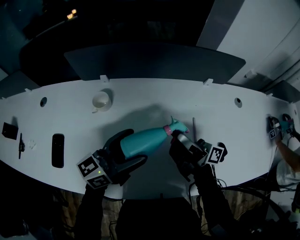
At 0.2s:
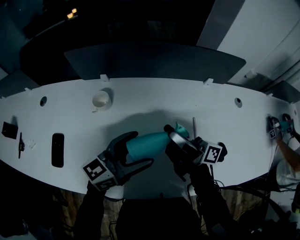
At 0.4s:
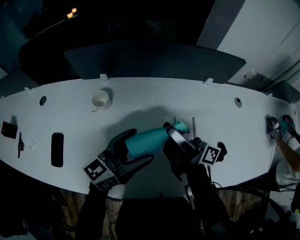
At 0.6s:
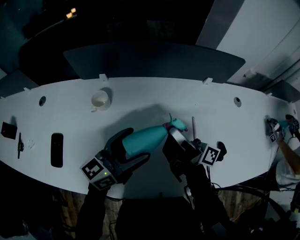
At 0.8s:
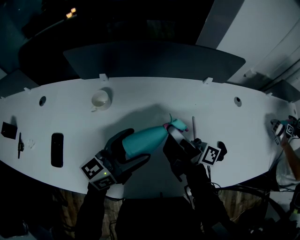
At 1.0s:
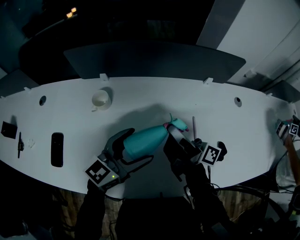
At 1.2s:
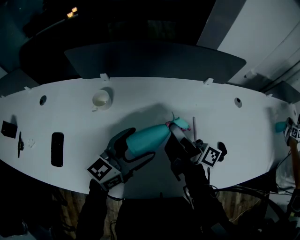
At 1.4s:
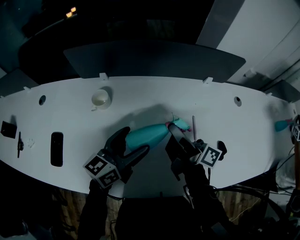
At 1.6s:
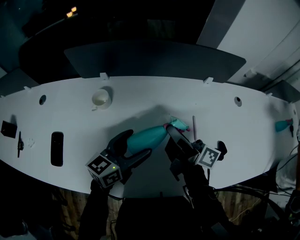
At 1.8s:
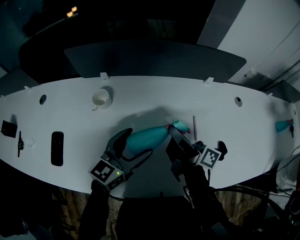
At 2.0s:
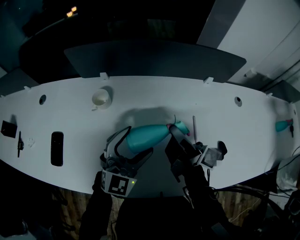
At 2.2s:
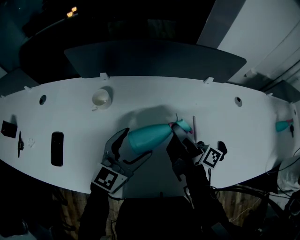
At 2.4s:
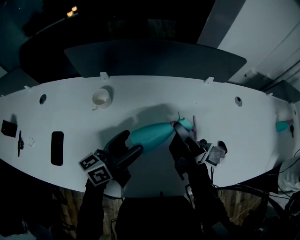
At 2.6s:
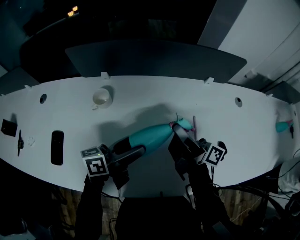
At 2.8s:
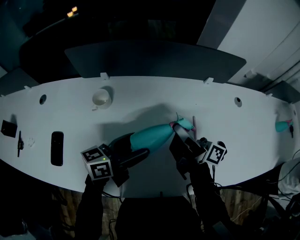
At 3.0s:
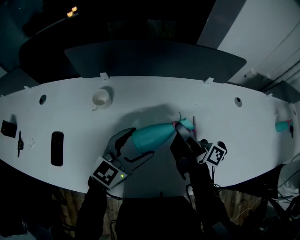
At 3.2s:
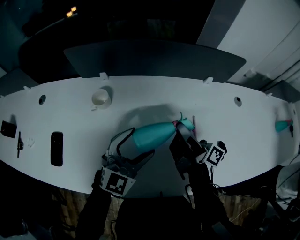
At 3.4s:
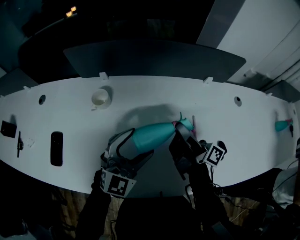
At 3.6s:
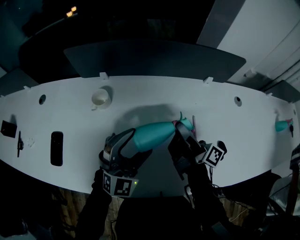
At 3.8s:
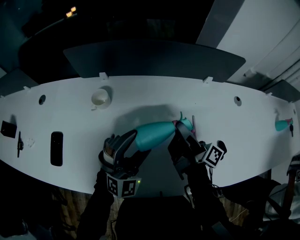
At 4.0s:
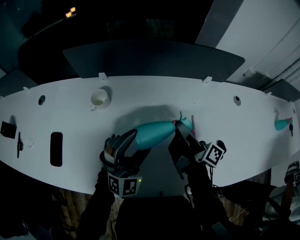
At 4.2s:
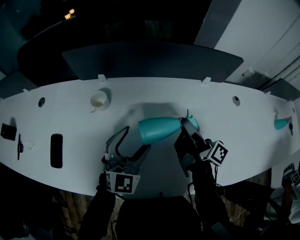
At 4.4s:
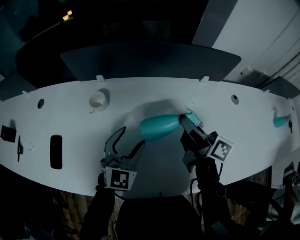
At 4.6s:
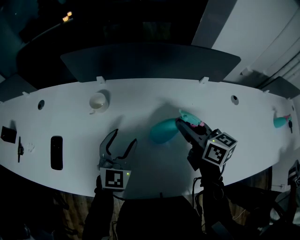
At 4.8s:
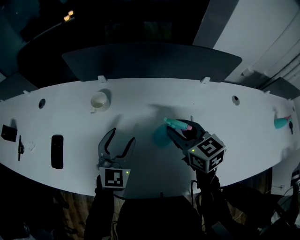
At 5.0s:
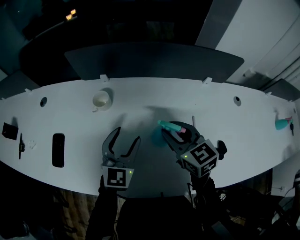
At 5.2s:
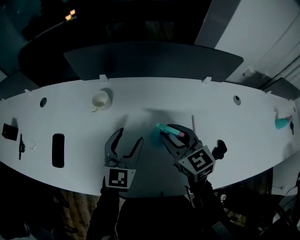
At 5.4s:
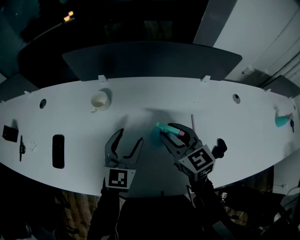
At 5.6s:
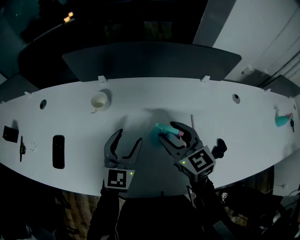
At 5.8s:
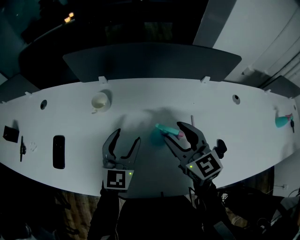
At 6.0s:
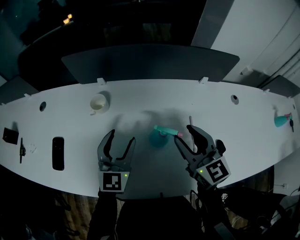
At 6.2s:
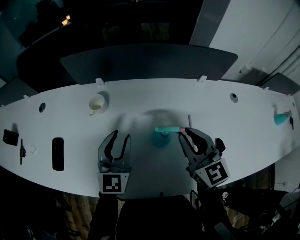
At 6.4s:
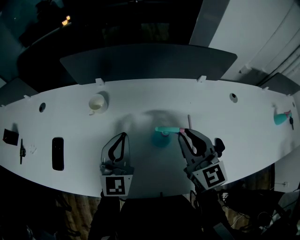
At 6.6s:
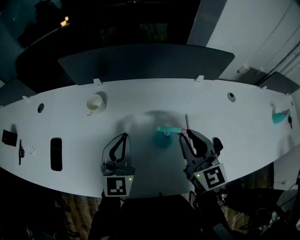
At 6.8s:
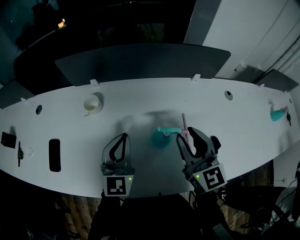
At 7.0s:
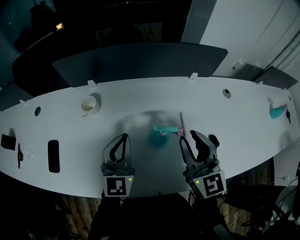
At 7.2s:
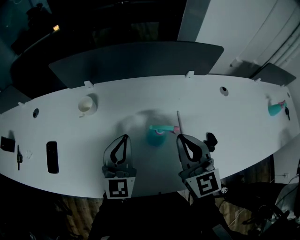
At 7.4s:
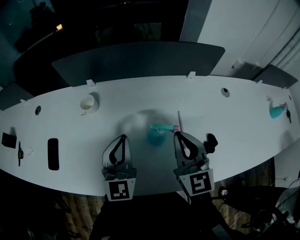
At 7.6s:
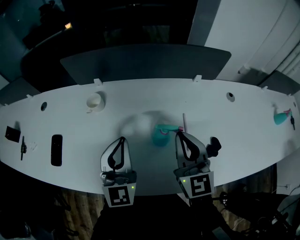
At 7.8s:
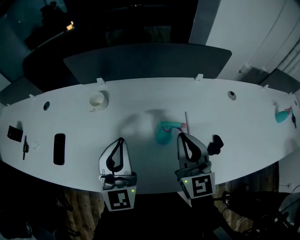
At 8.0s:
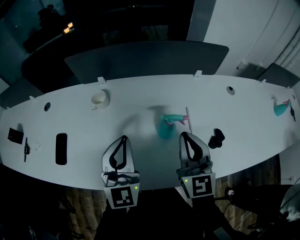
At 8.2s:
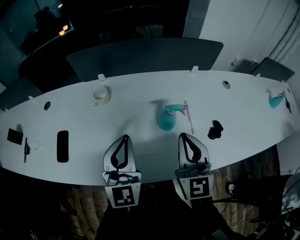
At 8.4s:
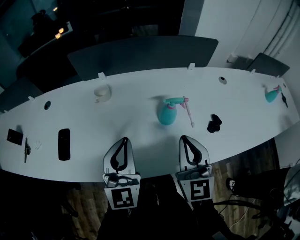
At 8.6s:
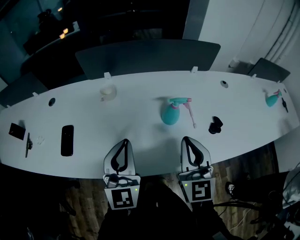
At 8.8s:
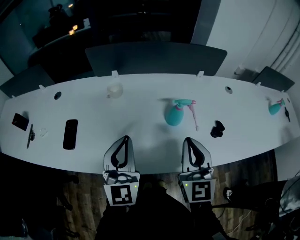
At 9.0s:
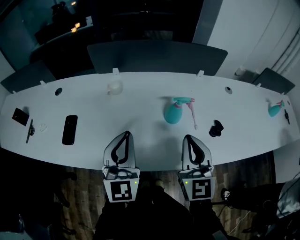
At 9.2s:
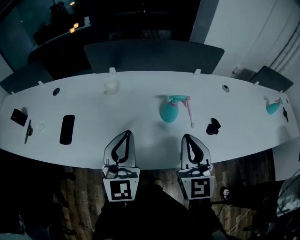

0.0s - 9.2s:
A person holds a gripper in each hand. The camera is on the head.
0.0s - 1.6s: The left gripper is displaced downward by about 5 cm. The right gripper closes its fingers.
1.6s - 3.0s: The left gripper turns by roughly 30 degrees.
3.0s - 4.6s: The right gripper rolls counterclockwise, seen from behind, by roughly 40 degrees; the left gripper changes place by some 5 cm, and swivels approximately 30 degrees.
4.6s - 6.2s: The right gripper travels backward by some 5 cm, and rotates some 30 degrees.
6.2s - 7.6s: The left gripper is displaced backward by about 5 cm, and closes up.
7.6s - 9.2s: The two grippers go some 15 cm backward.

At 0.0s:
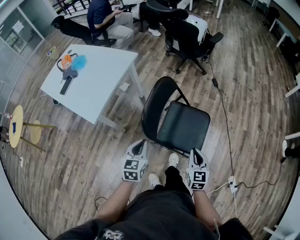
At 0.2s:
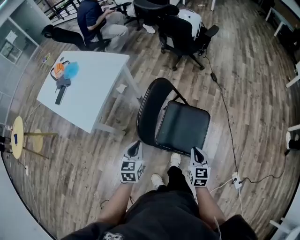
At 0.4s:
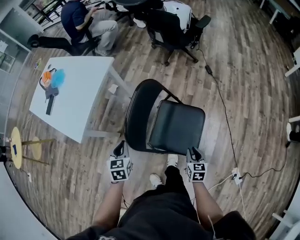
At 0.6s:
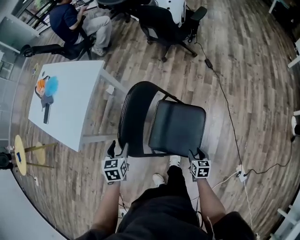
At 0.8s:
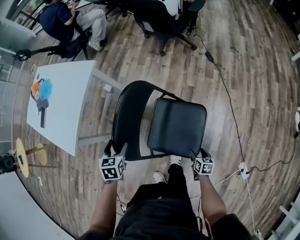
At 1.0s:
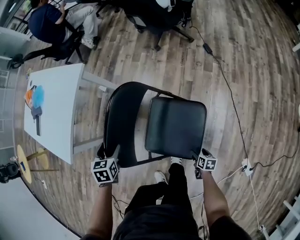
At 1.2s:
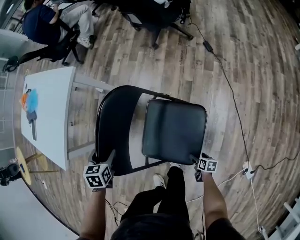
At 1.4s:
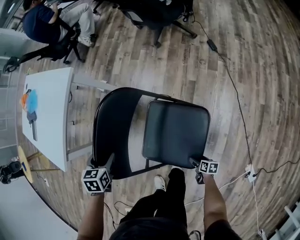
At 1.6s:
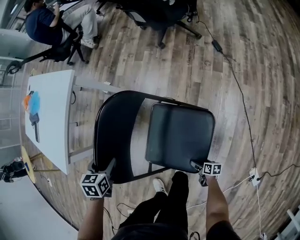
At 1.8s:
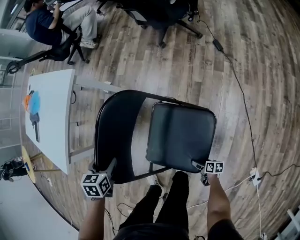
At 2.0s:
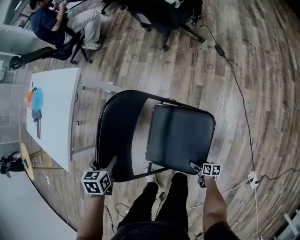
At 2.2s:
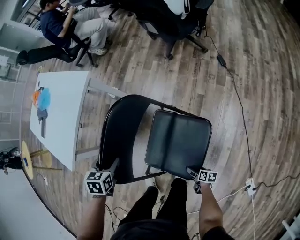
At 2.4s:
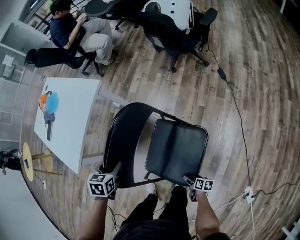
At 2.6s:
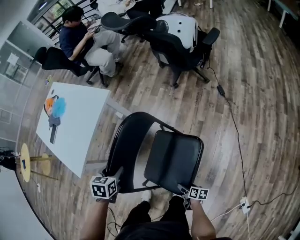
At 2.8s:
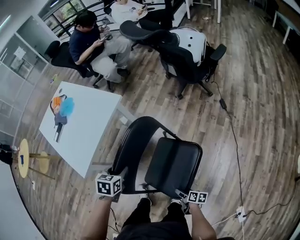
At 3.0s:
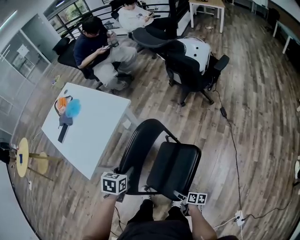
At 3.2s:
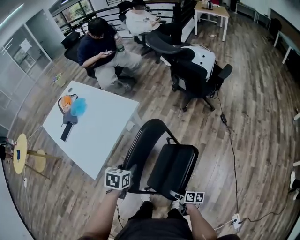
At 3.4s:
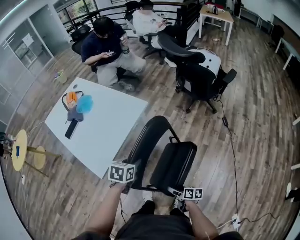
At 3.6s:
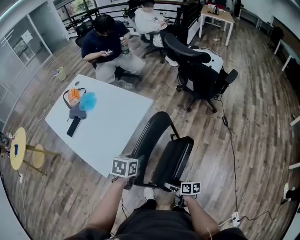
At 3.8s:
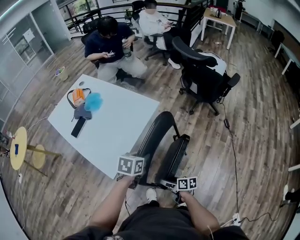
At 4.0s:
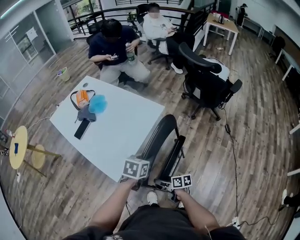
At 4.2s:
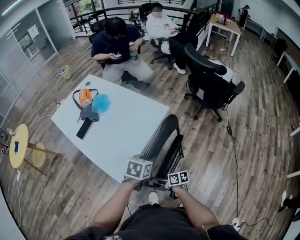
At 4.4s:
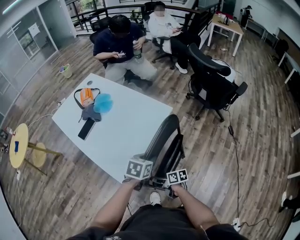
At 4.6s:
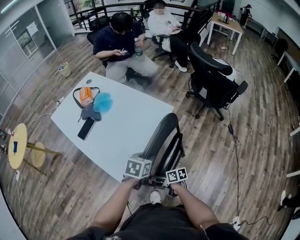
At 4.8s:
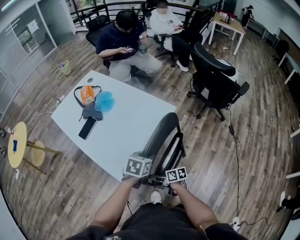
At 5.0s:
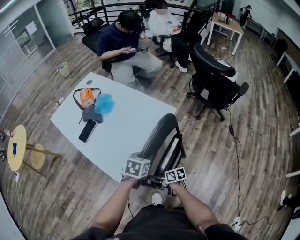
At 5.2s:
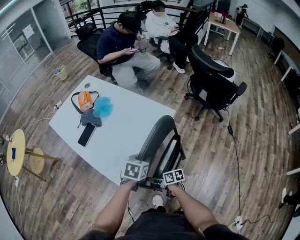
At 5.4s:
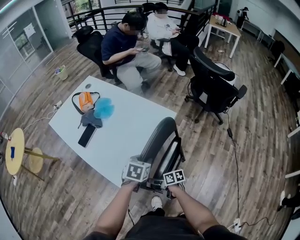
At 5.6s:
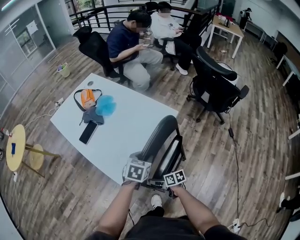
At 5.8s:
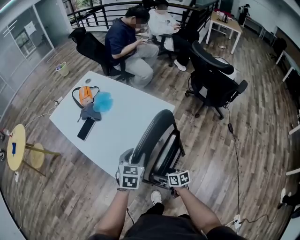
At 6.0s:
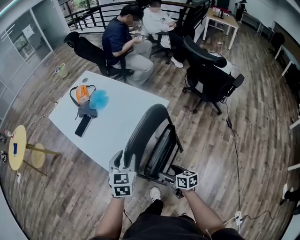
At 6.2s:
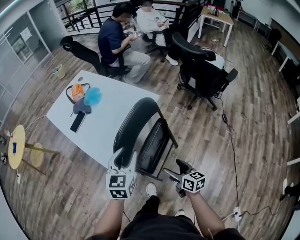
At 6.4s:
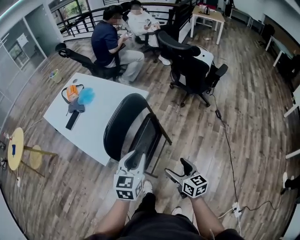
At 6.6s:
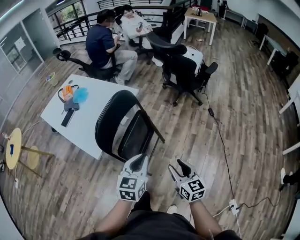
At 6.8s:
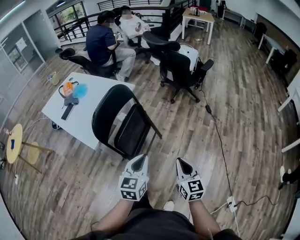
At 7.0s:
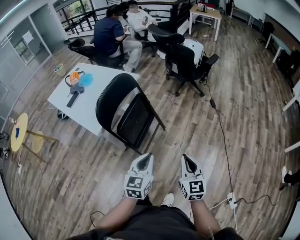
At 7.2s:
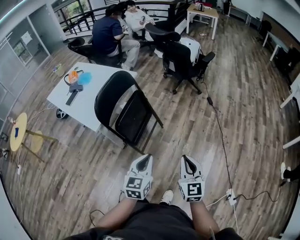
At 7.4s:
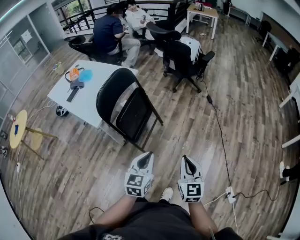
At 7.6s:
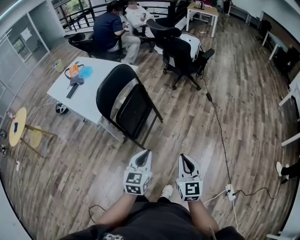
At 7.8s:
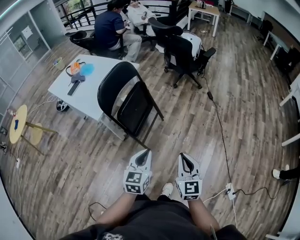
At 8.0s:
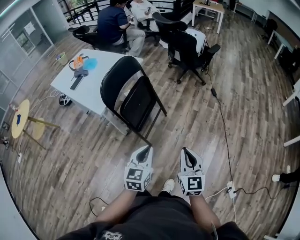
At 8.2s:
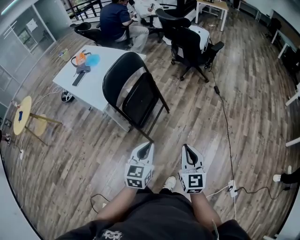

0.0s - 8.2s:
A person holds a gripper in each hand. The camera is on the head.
0.0s - 1.6s: The left gripper shifts by roughly 30 cm, angles its fingers downward, by roughly 30 degrees, and opens up, while the right gripper travels downward by roughly 50 cm, swivels about 70 degrees, and opens its fingers.
1.6s - 3.2s: The right gripper goes some 40 cm upward, to the left and forward; the left gripper shifts about 20 cm upward and to the left, and closes up.
3.2s - 5.0s: The left gripper shifts approximately 20 cm to the left and forward. Meanwhile the right gripper travels to the left and forward by roughly 40 cm, and swivels about 30 degrees.
5.0s - 6.6s: The right gripper shifts by approximately 40 cm, turns by some 60 degrees, and closes its fingers; the left gripper moves approximately 35 cm, rotates roughly 30 degrees, and opens and closes again.
6.6s - 8.2s: Both grippers travel together backward, some 20 cm. The right gripper swivels approximately 20 degrees, and closes up.

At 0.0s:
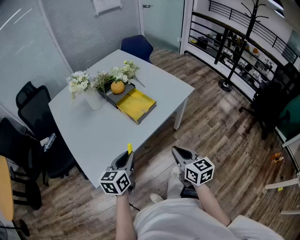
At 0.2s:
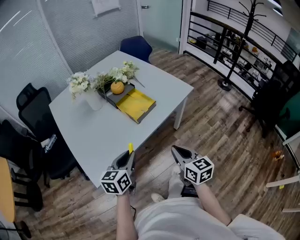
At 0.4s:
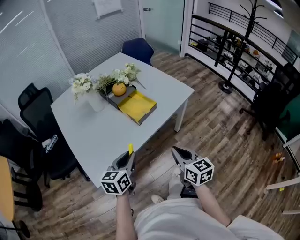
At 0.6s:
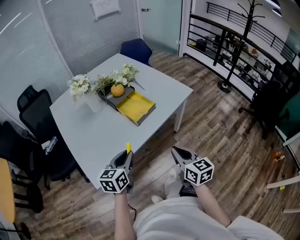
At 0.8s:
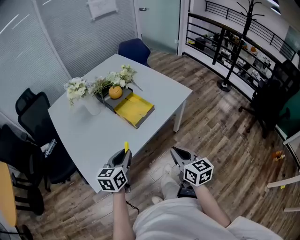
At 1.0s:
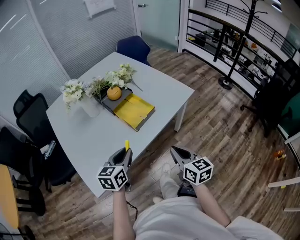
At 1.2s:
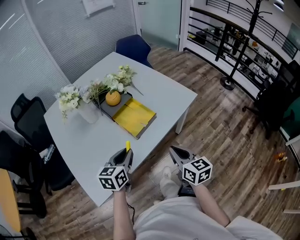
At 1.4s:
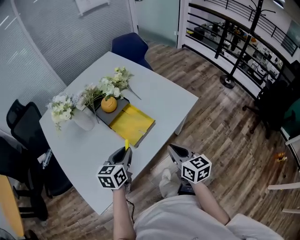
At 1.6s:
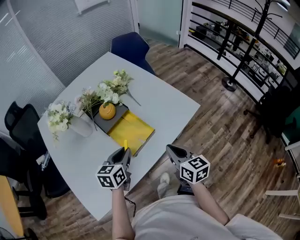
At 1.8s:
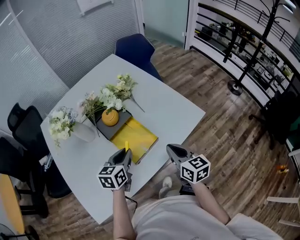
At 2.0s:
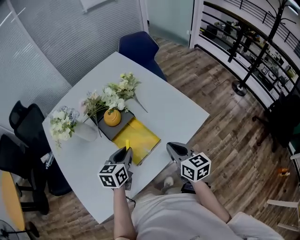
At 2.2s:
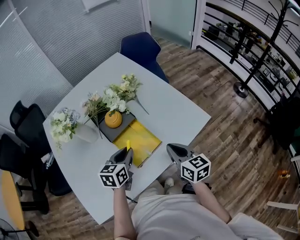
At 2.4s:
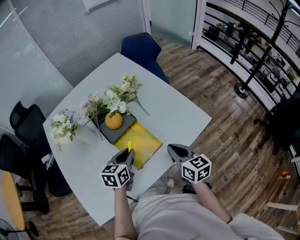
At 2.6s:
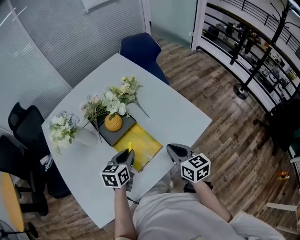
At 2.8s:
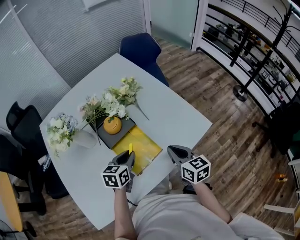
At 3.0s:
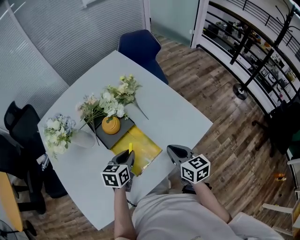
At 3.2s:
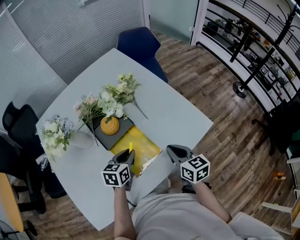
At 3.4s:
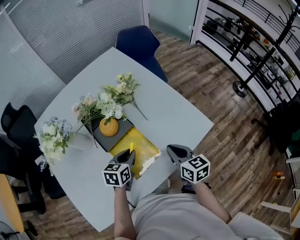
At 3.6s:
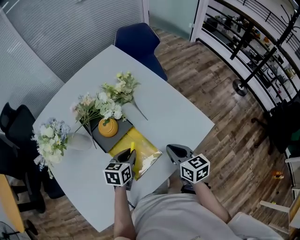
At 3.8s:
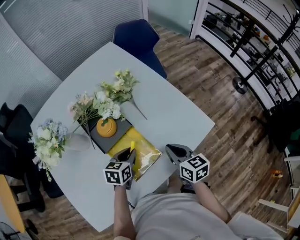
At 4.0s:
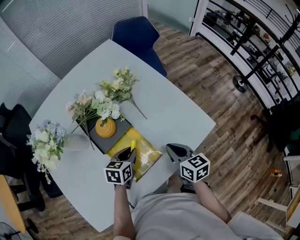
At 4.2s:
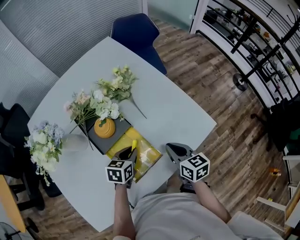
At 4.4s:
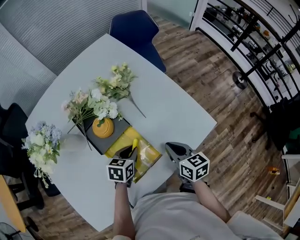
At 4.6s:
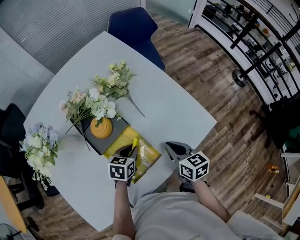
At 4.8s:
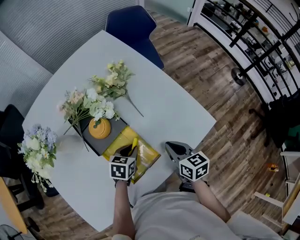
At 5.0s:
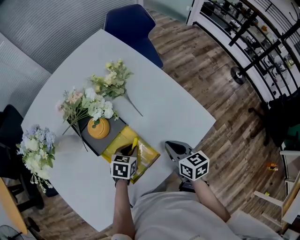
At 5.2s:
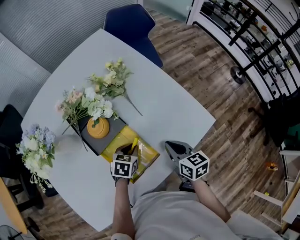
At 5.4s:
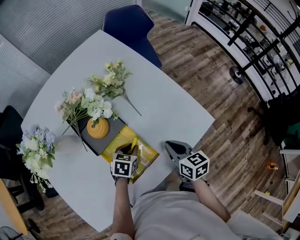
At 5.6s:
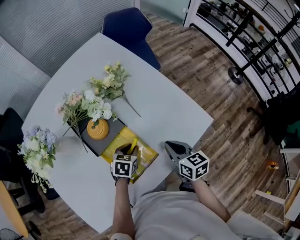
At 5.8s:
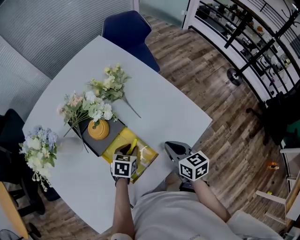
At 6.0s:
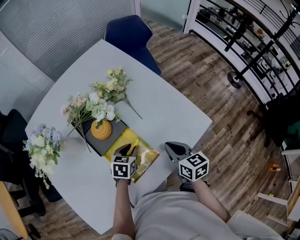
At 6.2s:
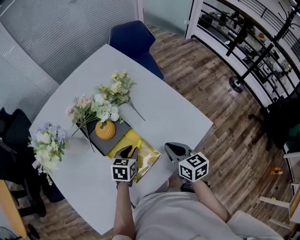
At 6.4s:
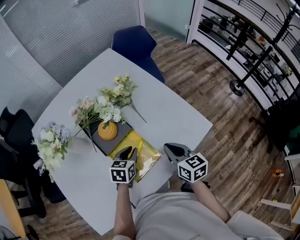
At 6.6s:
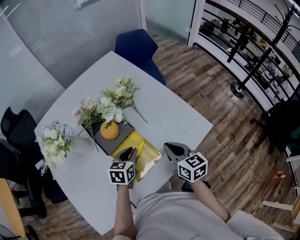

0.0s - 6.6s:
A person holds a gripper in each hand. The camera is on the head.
0.0s - 1.6s: Both grippers travel together forward, roughly 25 cm.
1.6s - 3.2s: The left gripper goes about 15 cm forward and downward, while the right gripper heads forward, covering approximately 15 cm.
3.2s - 5.0s: The left gripper travels downward by about 10 cm, while the right gripper travels downward and forward by about 10 cm.
5.0s - 6.6s: Both grippers move upward, approximately 10 cm.
